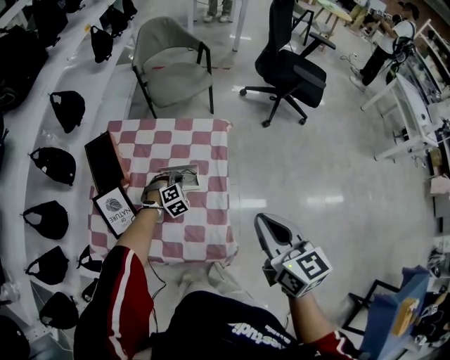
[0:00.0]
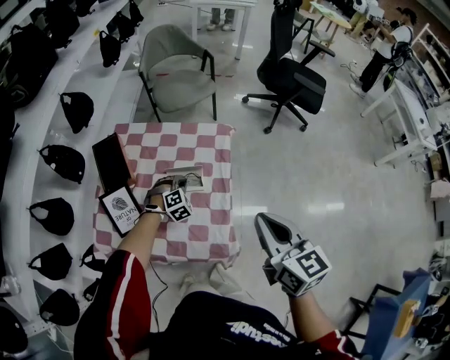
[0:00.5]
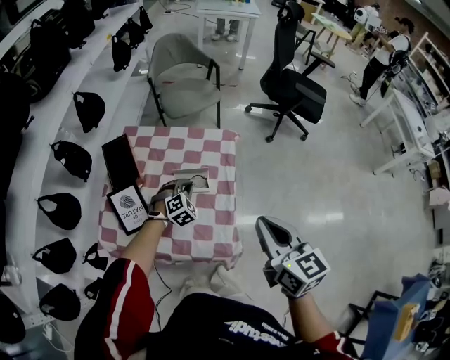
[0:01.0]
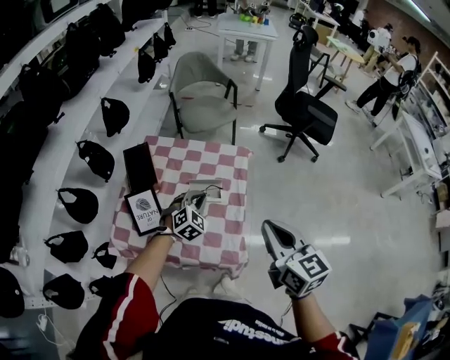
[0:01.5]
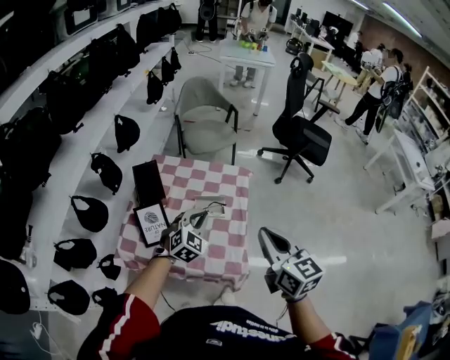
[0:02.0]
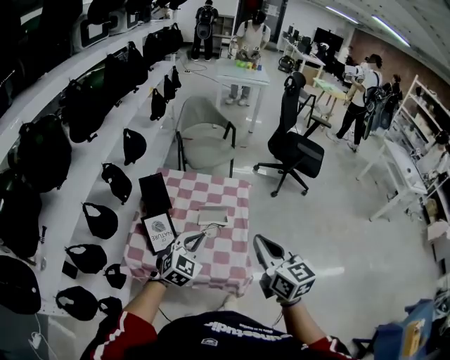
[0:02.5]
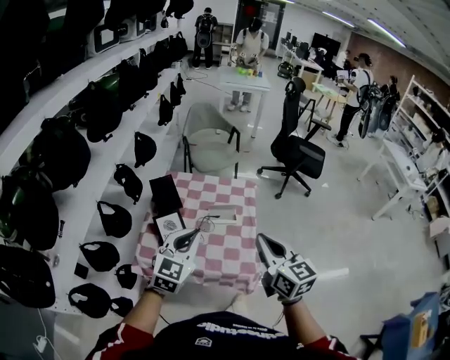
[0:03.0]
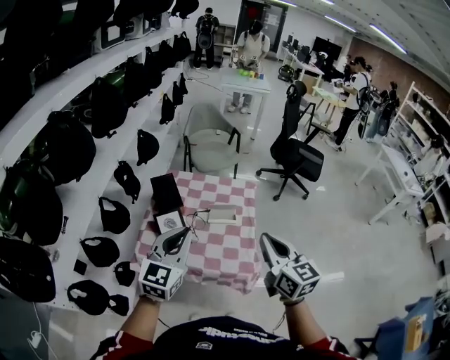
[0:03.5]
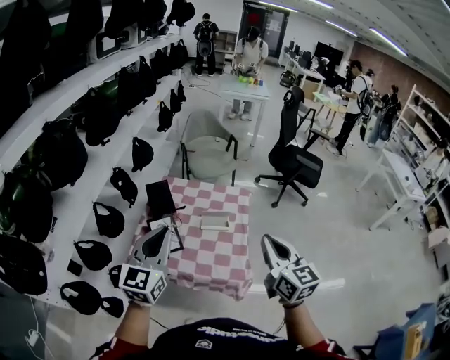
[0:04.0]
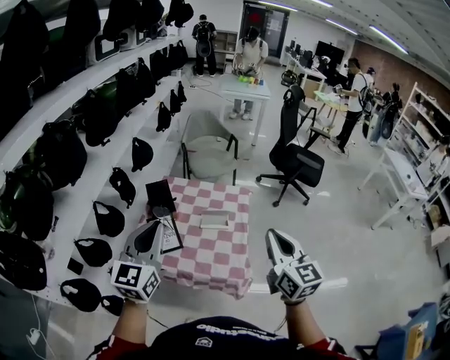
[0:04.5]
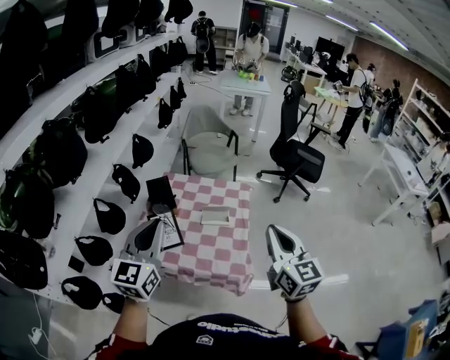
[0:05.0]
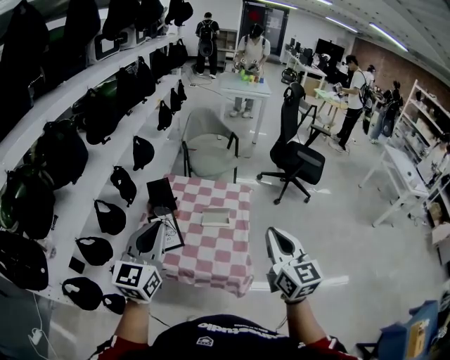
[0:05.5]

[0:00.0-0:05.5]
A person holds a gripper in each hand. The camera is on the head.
0:00.0 to 0:02.0: The right gripper goes some 15 cm upward, to the left and backward; the left gripper shifts roughly 30 cm upward and backward, and rotates some 40 degrees.
0:02.0 to 0:03.5: The right gripper shifts approximately 10 cm backward and to the left; the left gripper heads upward, backward and to the left, covering approximately 30 cm, and changes its angle by about 40 degrees.
0:03.5 to 0:05.5: The right gripper goes approximately 5 cm to the right. The left gripper travels upward by some 5 cm.

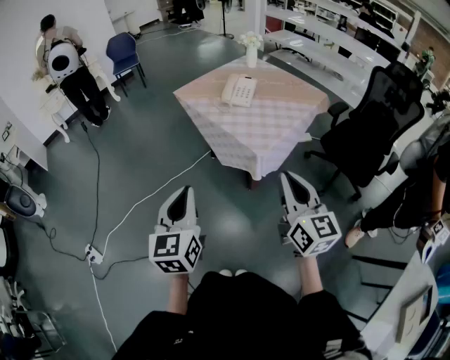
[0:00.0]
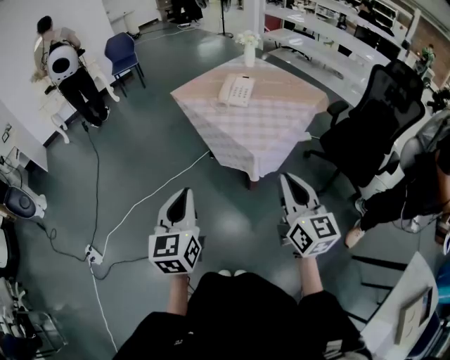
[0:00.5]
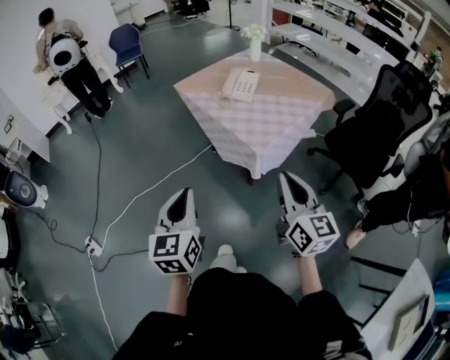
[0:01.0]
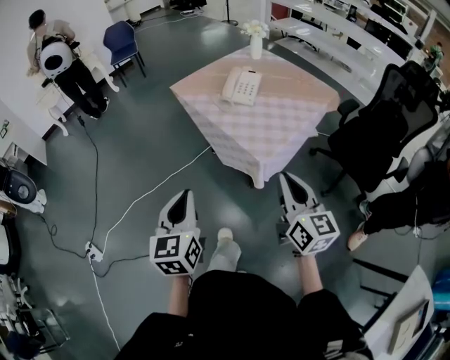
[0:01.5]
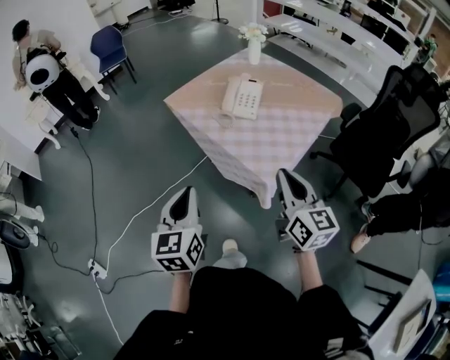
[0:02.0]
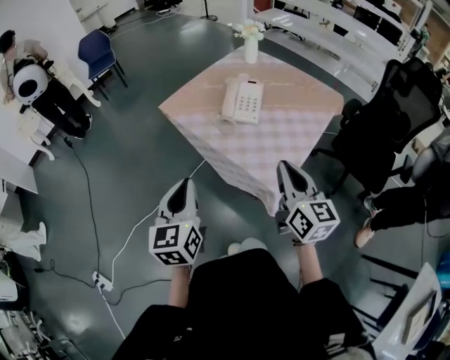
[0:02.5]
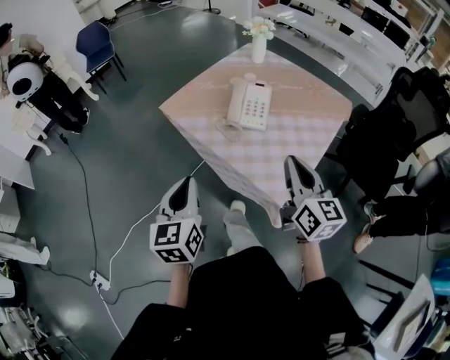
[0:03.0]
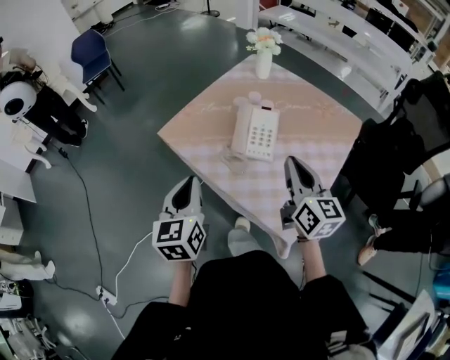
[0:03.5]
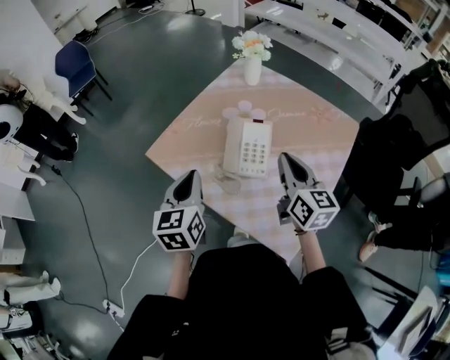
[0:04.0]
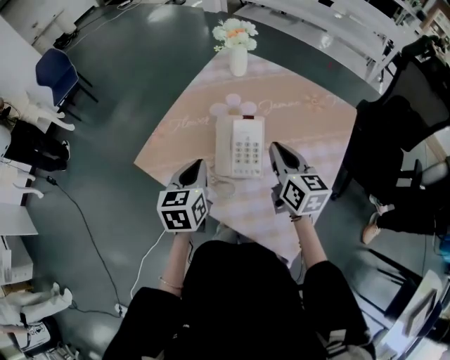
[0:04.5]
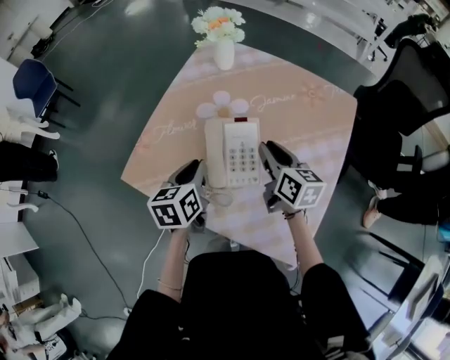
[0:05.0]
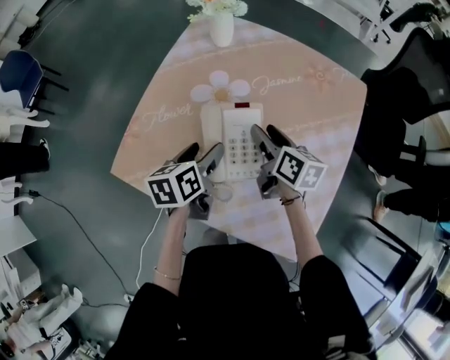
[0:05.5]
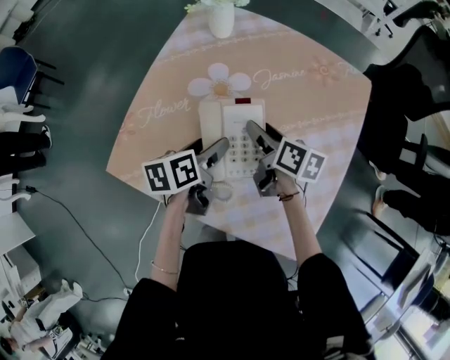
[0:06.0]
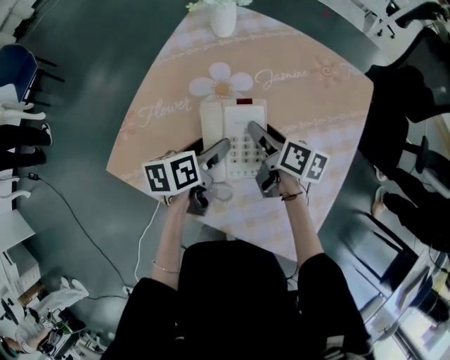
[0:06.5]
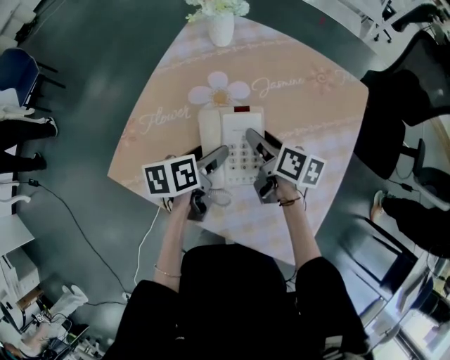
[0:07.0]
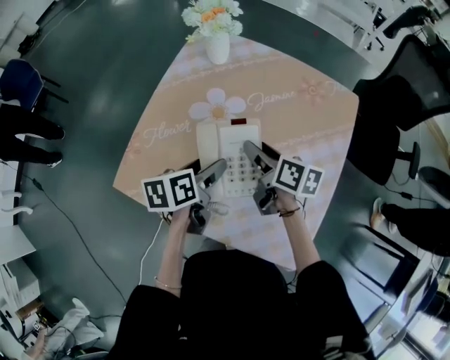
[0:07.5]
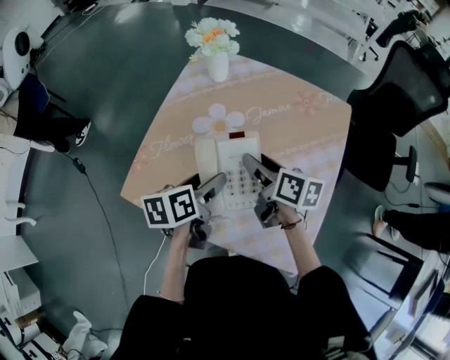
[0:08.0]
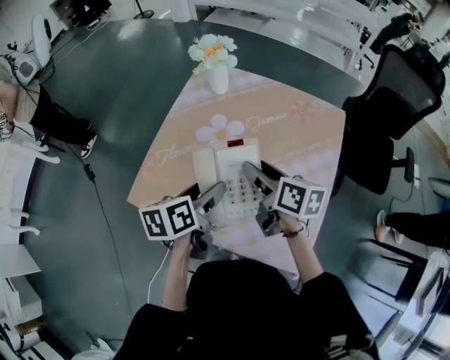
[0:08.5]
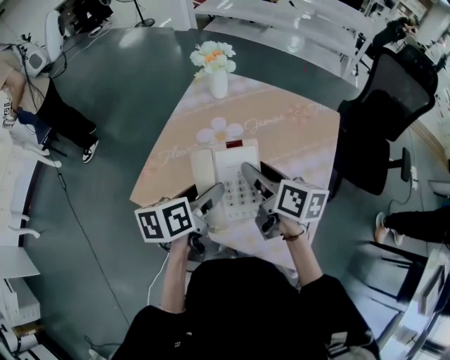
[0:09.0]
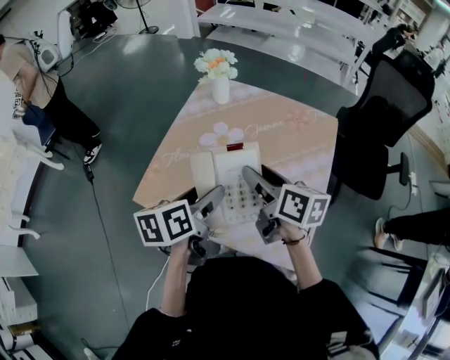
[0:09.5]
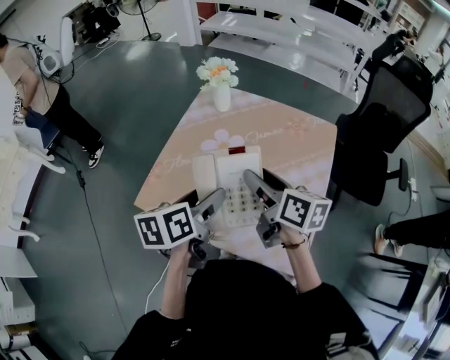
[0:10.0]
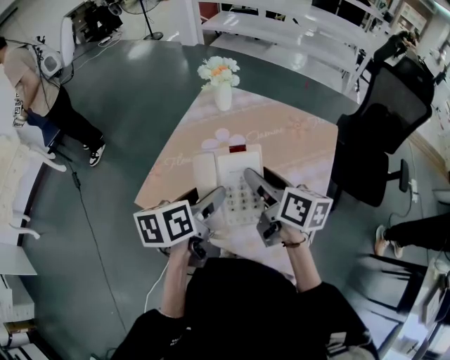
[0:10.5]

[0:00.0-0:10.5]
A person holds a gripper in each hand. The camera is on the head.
0:00.0 to 0:02.0: The two grippers go some 20 cm forward.
0:02.0 to 0:04.0: Both grippers travel together forward, about 35 cm.
0:04.0 to 0:06.5: The right gripper travels downward and forward by some 25 cm, changes its angle by about 40 degrees, and opens, while the left gripper is displaced downward, forward and to the right by some 25 cm, rotates roughly 50 degrees, and opens.
0:06.5 to 0:08.5: The right gripper is displaced upward by approximately 15 cm, while the left gripper heads upward and backward, covering approximately 15 cm.
0:08.5 to 0:10.5: Both grippers move upward, roughly 10 cm.

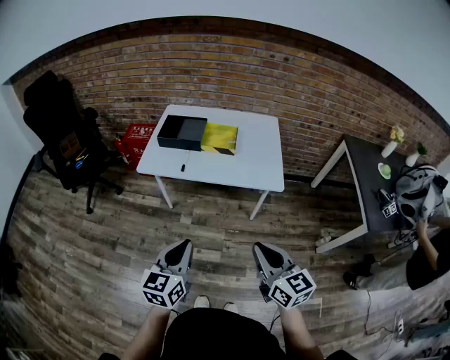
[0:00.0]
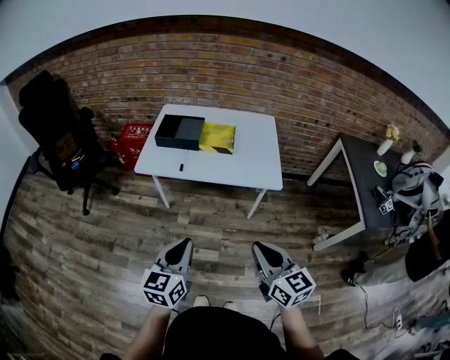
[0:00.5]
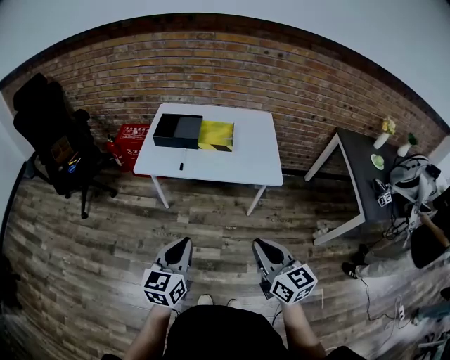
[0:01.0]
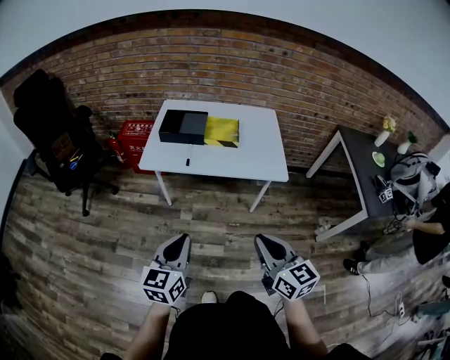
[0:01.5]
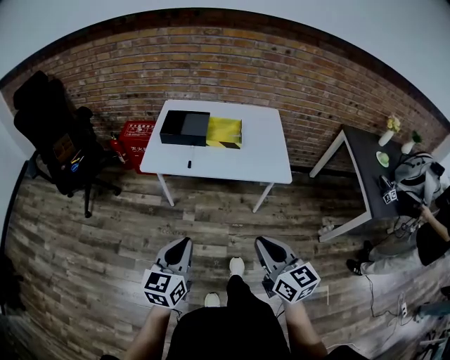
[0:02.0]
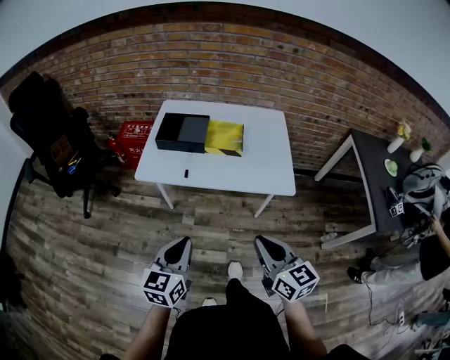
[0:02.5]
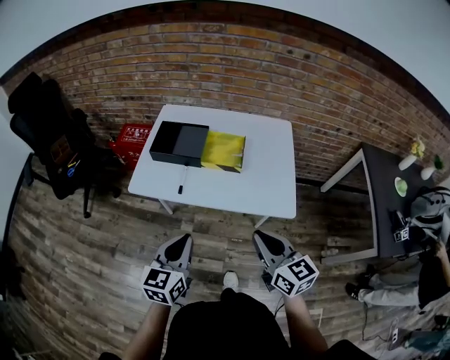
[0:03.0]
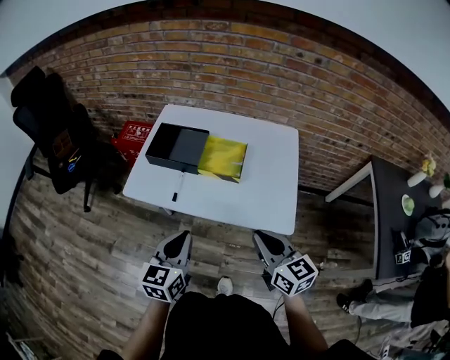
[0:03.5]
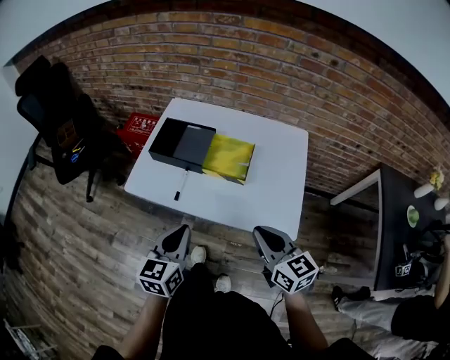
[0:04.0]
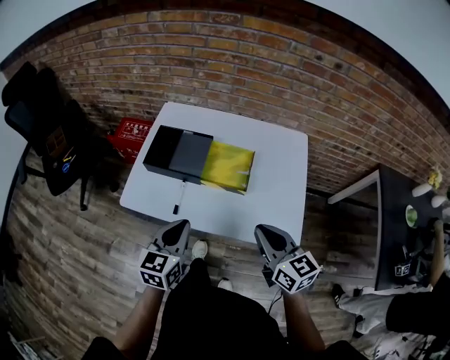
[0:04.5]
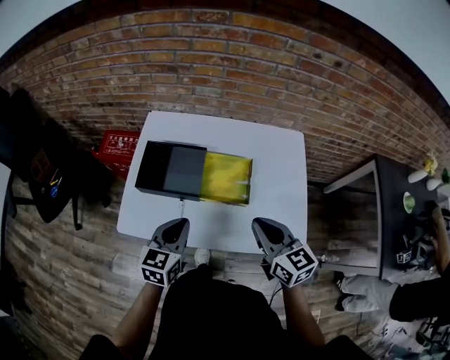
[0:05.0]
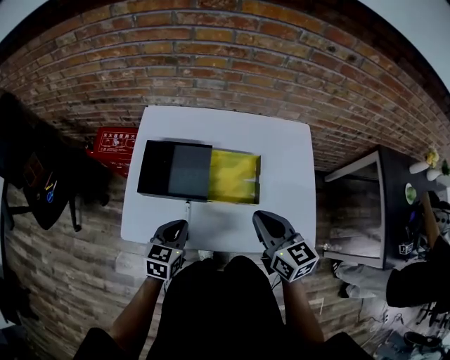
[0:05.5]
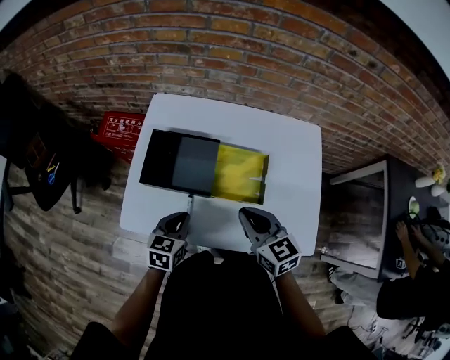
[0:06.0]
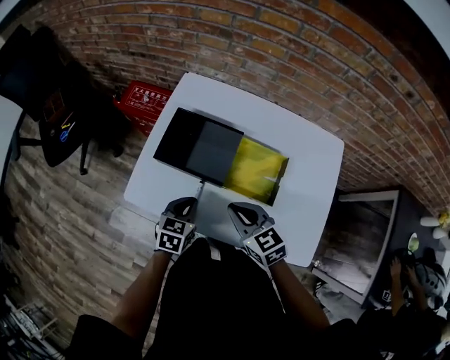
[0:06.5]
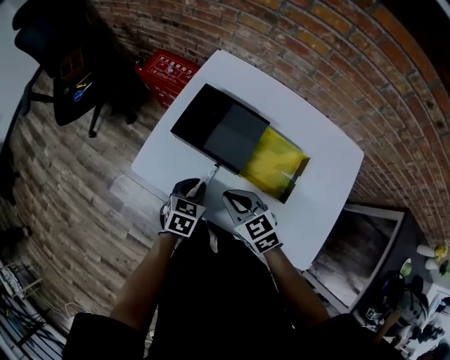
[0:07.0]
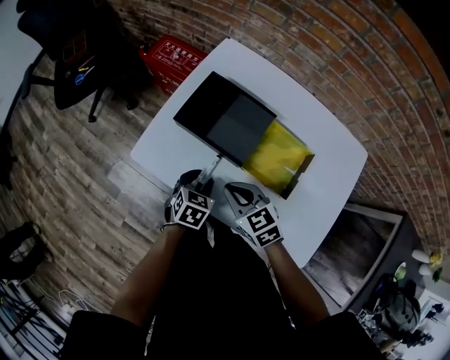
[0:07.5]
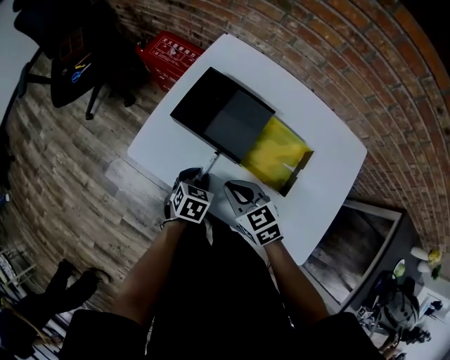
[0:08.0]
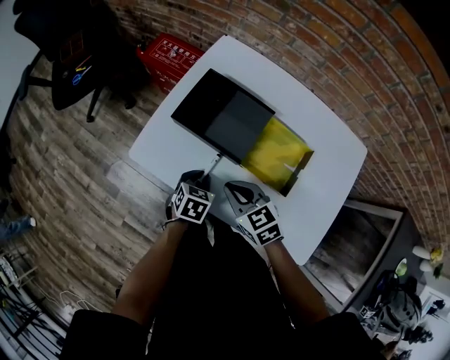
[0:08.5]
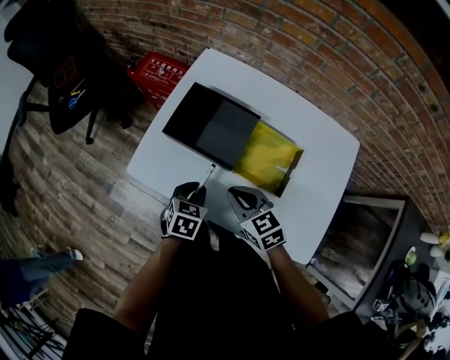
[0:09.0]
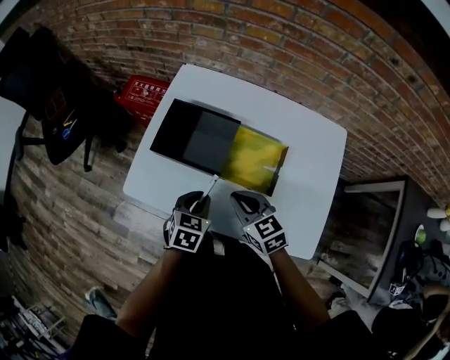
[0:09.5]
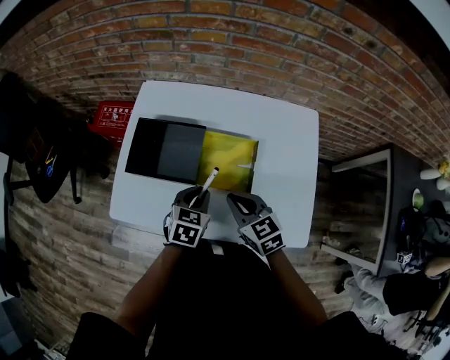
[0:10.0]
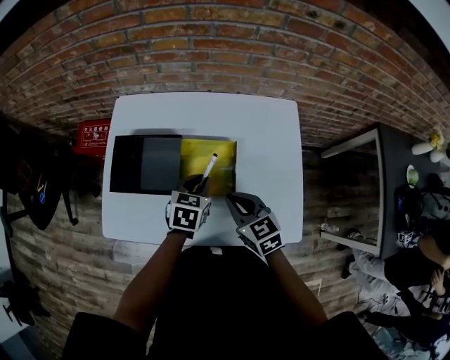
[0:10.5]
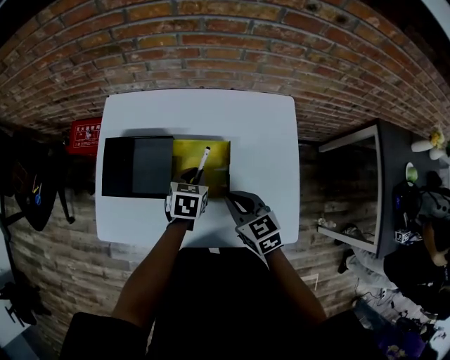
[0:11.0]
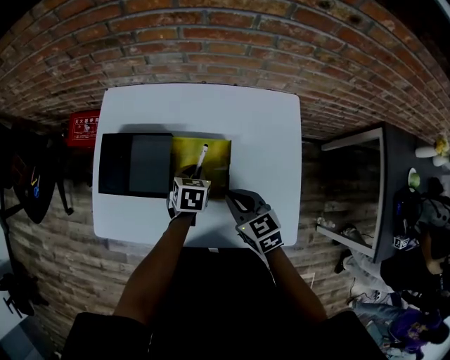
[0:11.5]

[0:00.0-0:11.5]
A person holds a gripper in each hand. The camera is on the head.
0:00.0 to 0:02.0: The grippers both shift to the left by approximately 5 cm.
0:02.0 to 0:04.0: The left gripper heads forward and to the right, covering approximately 30 cm. Meanwhile the right gripper heads forward, covering about 30 cm.
0:04.0 to 0:06.0: The left gripper travels forward and downward by approximately 25 cm, and swivels approximately 20 degrees. Meanwhile the right gripper is displaced forward and to the left by some 25 cm.
0:06.0 to 0:07.5: The left gripper goes roughly 10 cm downward, rotates some 20 degrees, and opens up; the right gripper moves some 15 cm, and turns by some 40 degrees.
0:07.5 to 0:09.5: The right gripper travels to the right by approximately 5 cm. The left gripper moves upward, roughly 5 cm.
0:09.5 to 0:11.5: The right gripper goes approximately 15 cm to the right, while the left gripper moves to the right and forward, roughly 20 cm.
